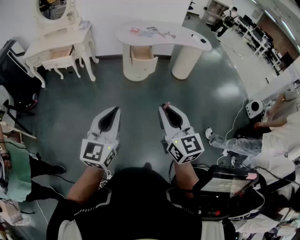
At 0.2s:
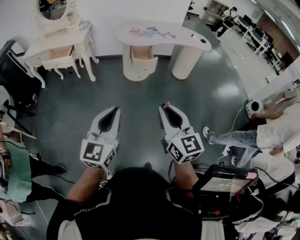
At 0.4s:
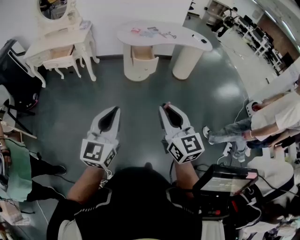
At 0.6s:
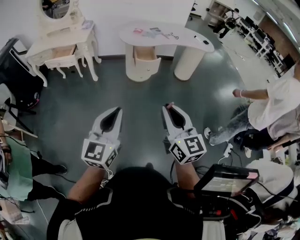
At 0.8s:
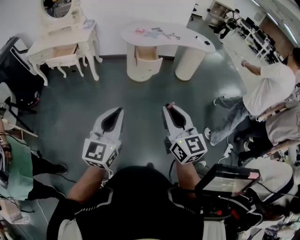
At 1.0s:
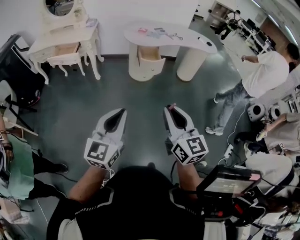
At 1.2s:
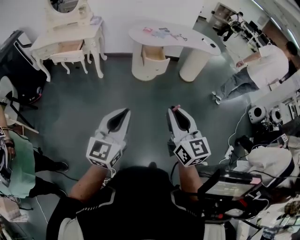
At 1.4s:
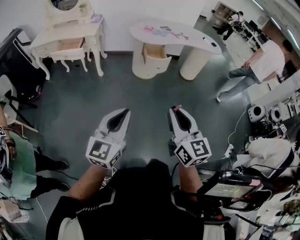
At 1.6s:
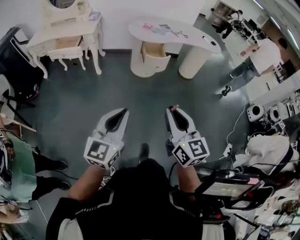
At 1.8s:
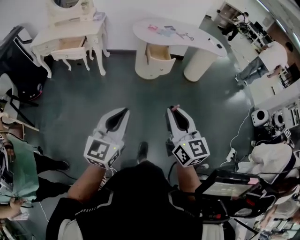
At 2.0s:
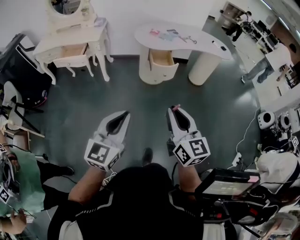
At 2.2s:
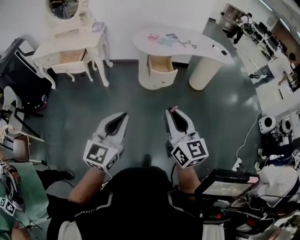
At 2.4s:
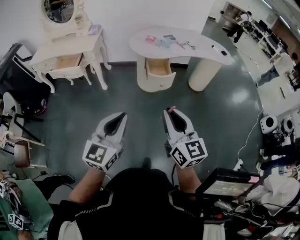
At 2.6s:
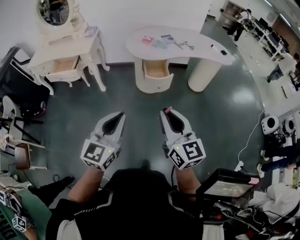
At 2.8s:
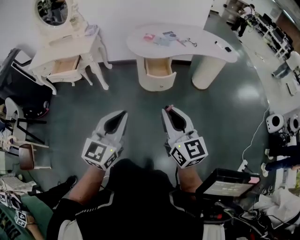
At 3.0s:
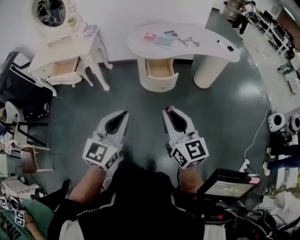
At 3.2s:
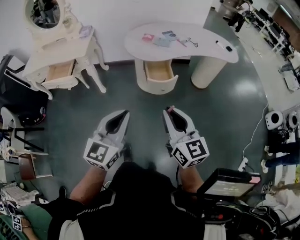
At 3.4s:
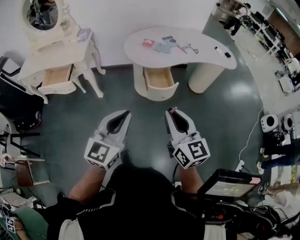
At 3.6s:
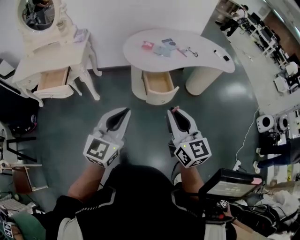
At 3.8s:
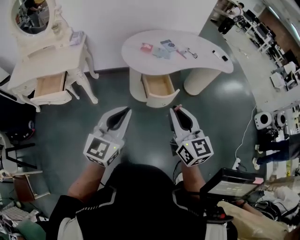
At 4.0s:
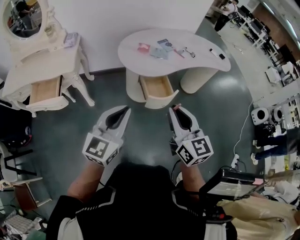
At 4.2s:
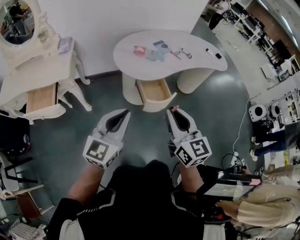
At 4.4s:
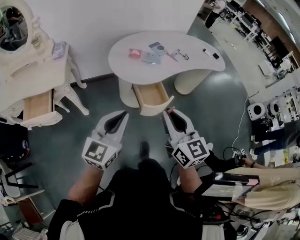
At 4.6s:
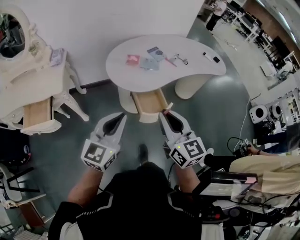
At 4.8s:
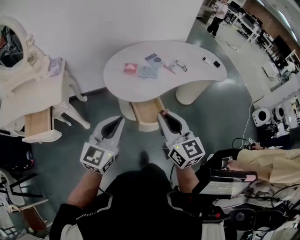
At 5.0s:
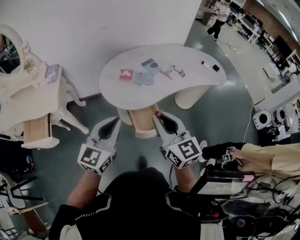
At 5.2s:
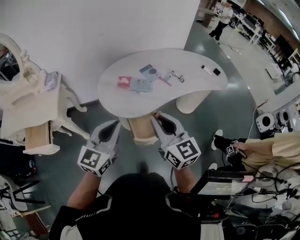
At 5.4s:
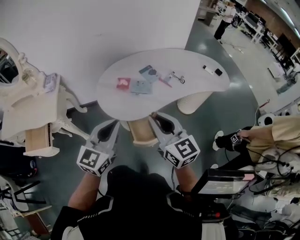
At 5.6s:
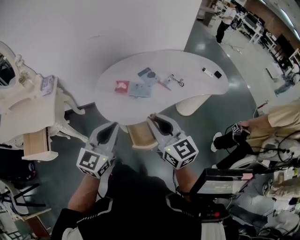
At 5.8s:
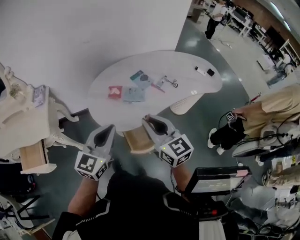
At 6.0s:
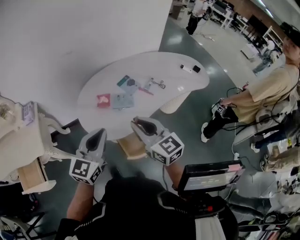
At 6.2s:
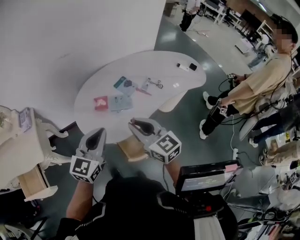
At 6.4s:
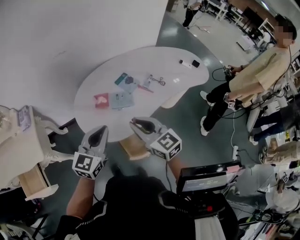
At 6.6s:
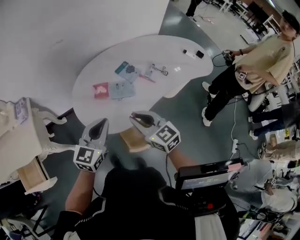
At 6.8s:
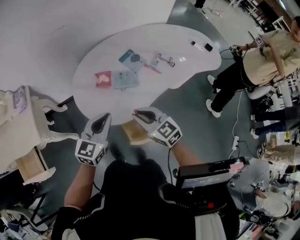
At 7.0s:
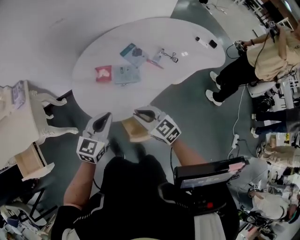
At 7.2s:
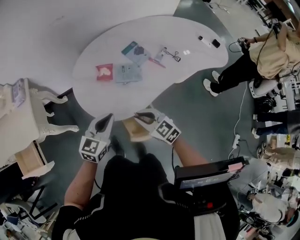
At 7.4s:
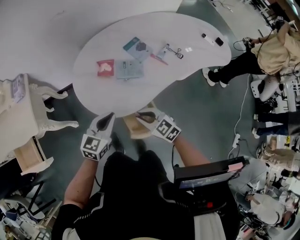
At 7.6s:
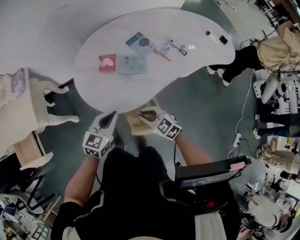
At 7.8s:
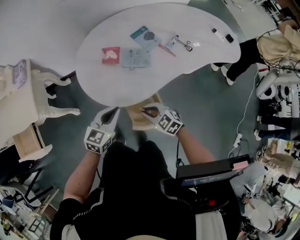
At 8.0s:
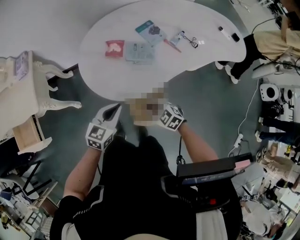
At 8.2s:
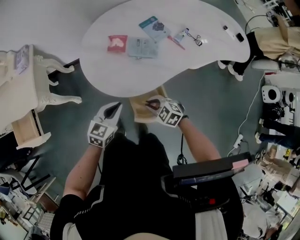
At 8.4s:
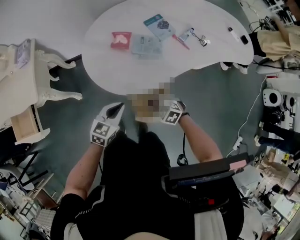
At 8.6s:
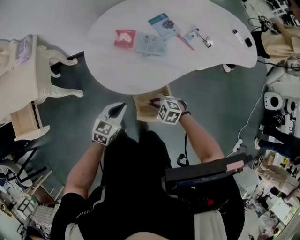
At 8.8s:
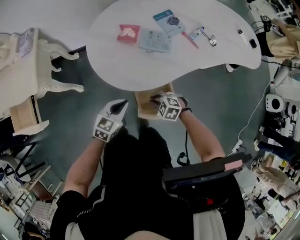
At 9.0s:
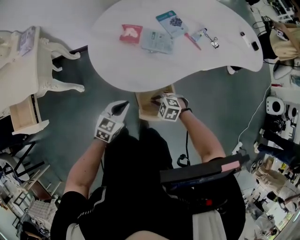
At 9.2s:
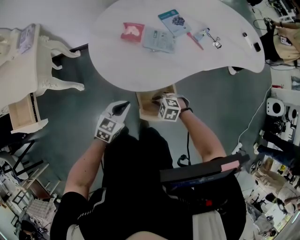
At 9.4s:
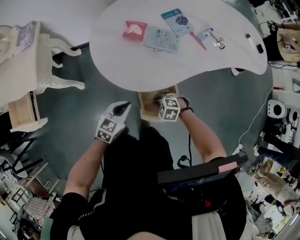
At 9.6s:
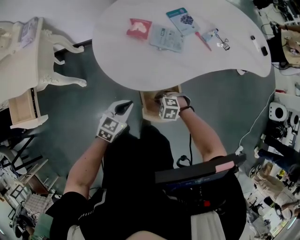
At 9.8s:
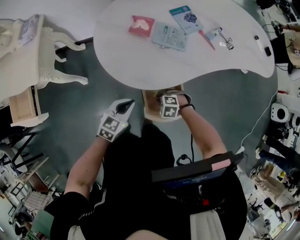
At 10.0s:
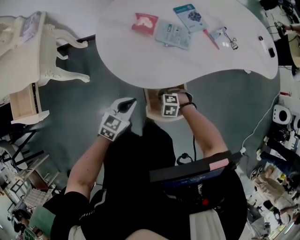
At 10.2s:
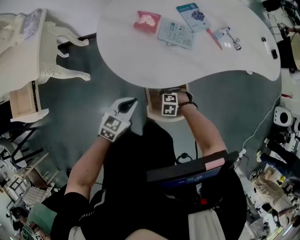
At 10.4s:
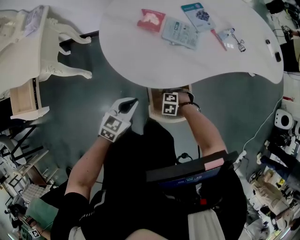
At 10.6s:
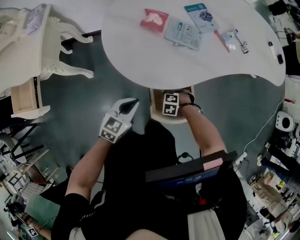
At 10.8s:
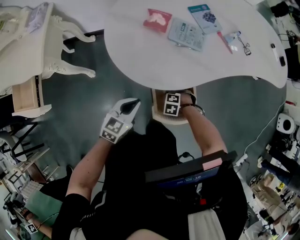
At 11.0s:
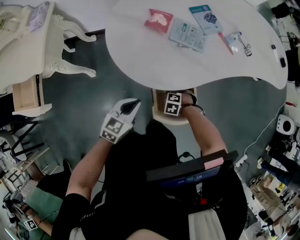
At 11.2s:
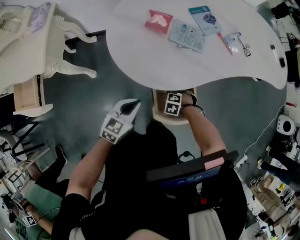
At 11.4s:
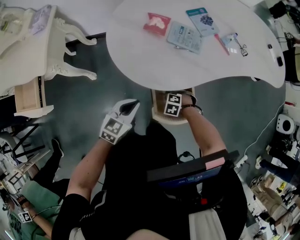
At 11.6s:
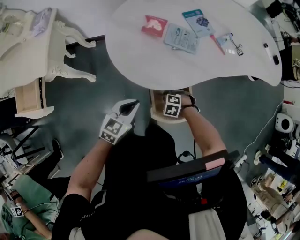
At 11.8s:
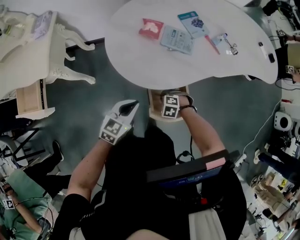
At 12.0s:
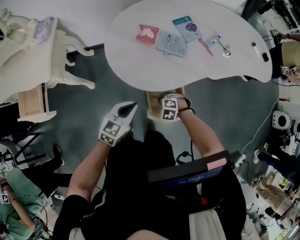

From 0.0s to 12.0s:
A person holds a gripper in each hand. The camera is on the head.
From 0.0s to 1.6s: Both grippers move to the left, roughly 10 cm.
From 1.6s to 3.0s: Both grippers move forward, about 25 cm.
From 3.0s to 4.4s: The two grippers go approximately 30 cm forward and to the left.
From 4.4s to 6.0s: The grippers both shift forward by approximately 30 cm.
From 6.0s to 7.6s: The two grippers go about 25 cm downward. The right gripper tips its fingers downward by some 30 degrees. Meanwhile the left gripper swivels some 20 degrees.
From 7.6s to 9.0s: The right gripper shifts some 15 cm downward, and swivels approximately 40 degrees; the left gripper is displaced downward and backward by some 15 cm.
From 9.0s to 10.4s: The right gripper travels downward by roughly 15 cm, and swivels some 20 degrees.
From 10.4s to 12.0s: The grippers both shift upward by roughly 10 cm.

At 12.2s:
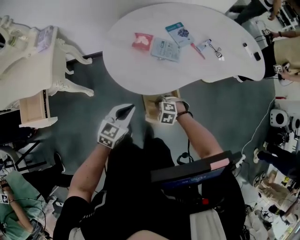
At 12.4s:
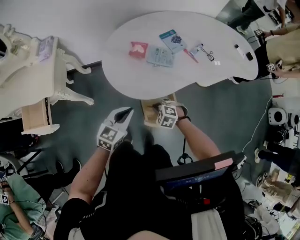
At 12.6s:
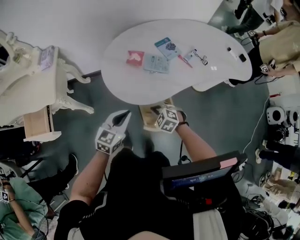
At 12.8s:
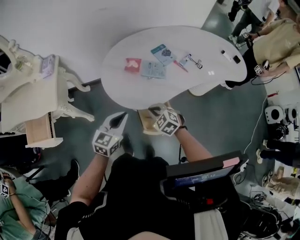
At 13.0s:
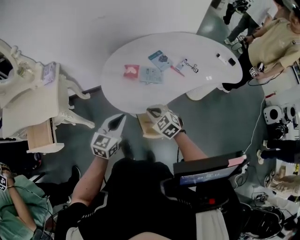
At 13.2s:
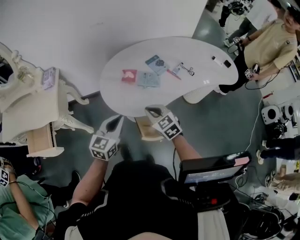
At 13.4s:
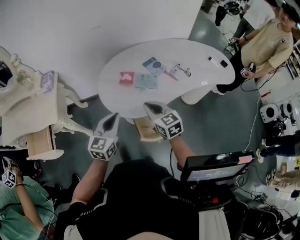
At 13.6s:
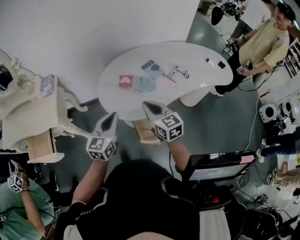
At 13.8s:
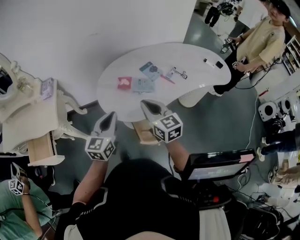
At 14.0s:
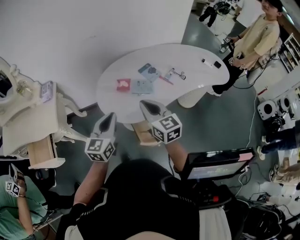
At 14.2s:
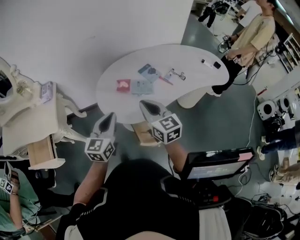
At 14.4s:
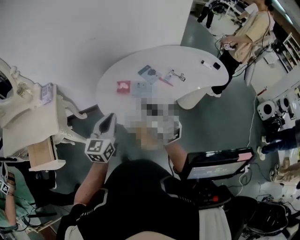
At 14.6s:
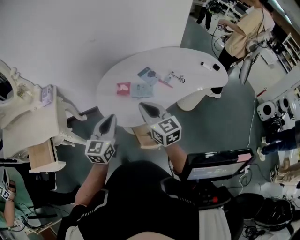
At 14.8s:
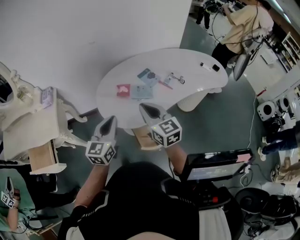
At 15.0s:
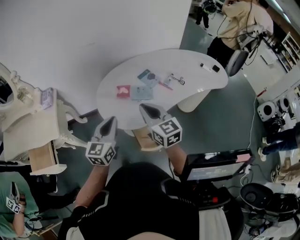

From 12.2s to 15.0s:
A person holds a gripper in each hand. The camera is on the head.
From 12.2s to 13.6s: The left gripper travels upward by approximately 20 cm, and turns by approximately 20 degrees. Meanwhile the right gripper moves upward, approximately 35 cm, and tips its fingers upward by approximately 60 degrees.
From 13.6s to 15.0s: The right gripper is displaced upward by some 5 cm.

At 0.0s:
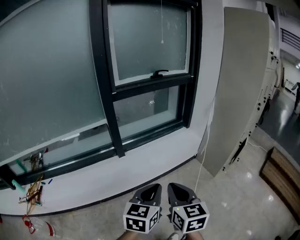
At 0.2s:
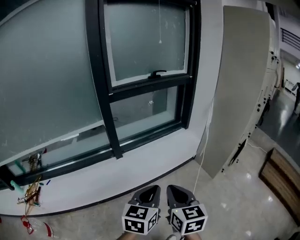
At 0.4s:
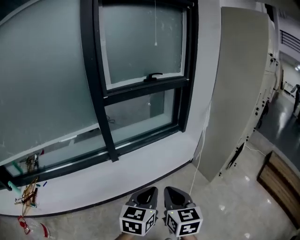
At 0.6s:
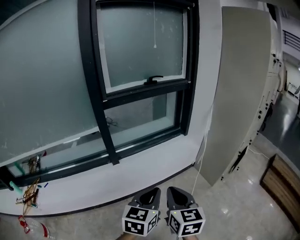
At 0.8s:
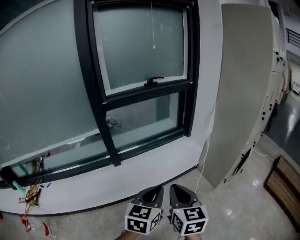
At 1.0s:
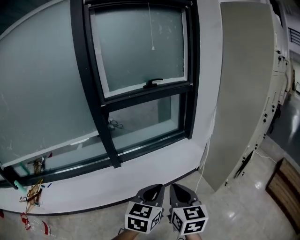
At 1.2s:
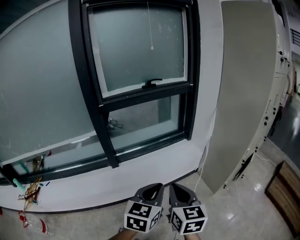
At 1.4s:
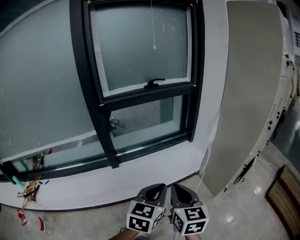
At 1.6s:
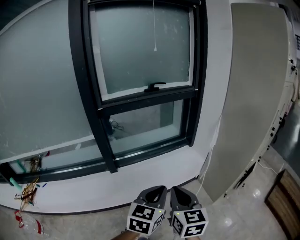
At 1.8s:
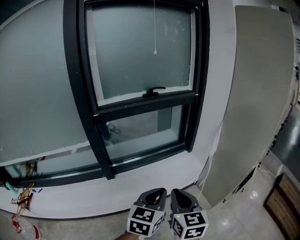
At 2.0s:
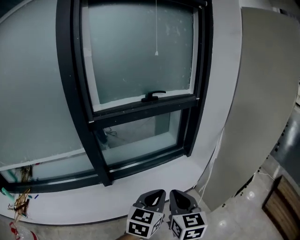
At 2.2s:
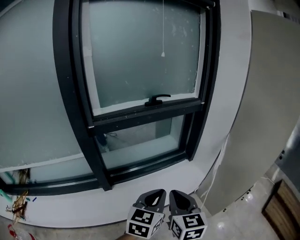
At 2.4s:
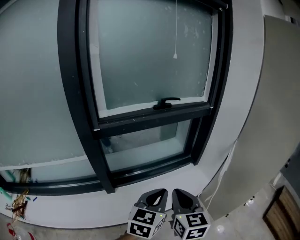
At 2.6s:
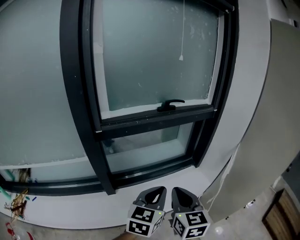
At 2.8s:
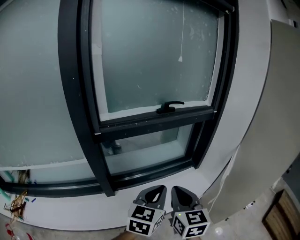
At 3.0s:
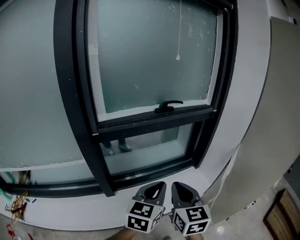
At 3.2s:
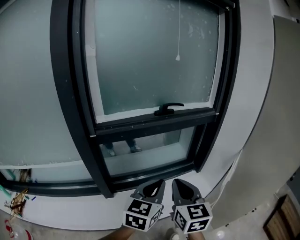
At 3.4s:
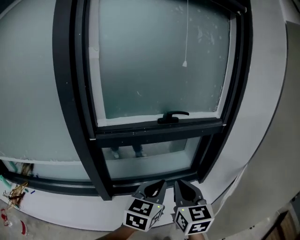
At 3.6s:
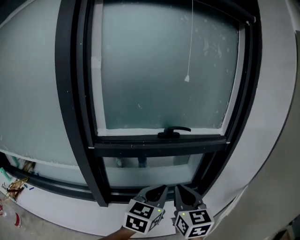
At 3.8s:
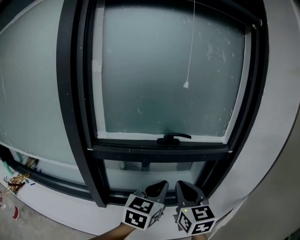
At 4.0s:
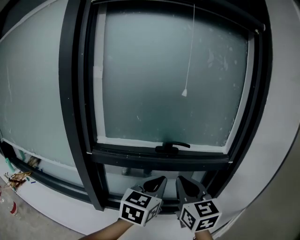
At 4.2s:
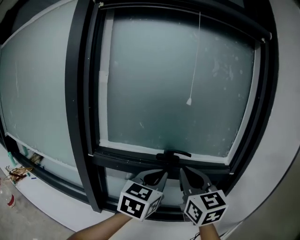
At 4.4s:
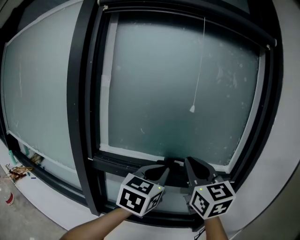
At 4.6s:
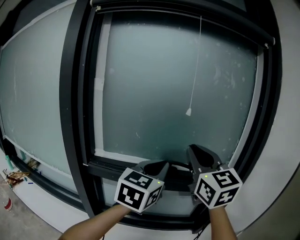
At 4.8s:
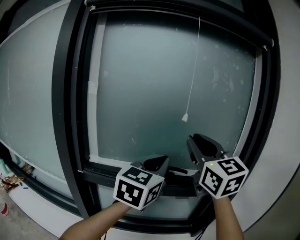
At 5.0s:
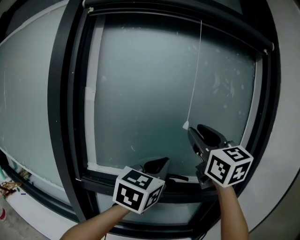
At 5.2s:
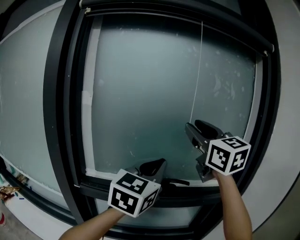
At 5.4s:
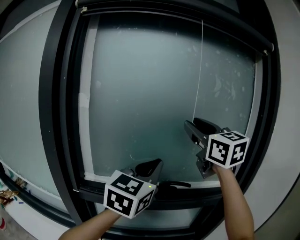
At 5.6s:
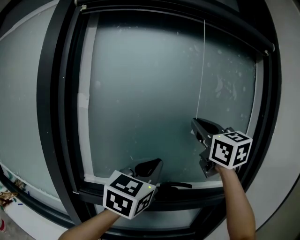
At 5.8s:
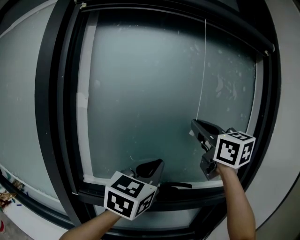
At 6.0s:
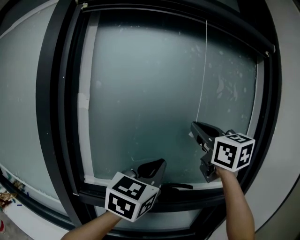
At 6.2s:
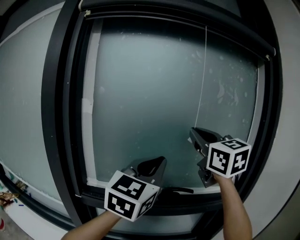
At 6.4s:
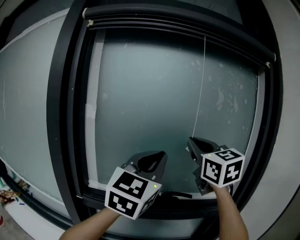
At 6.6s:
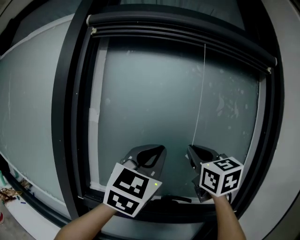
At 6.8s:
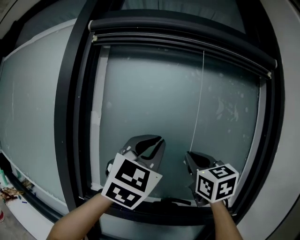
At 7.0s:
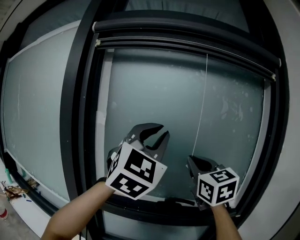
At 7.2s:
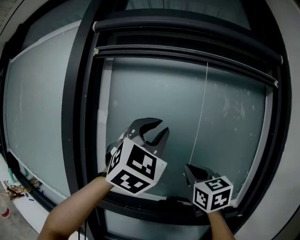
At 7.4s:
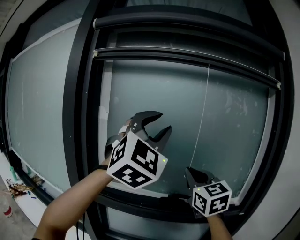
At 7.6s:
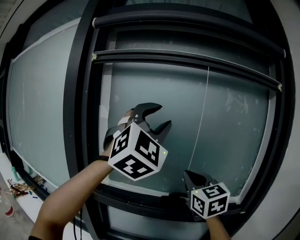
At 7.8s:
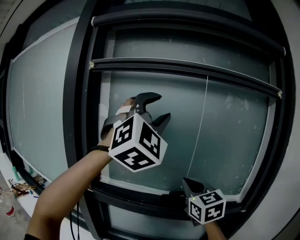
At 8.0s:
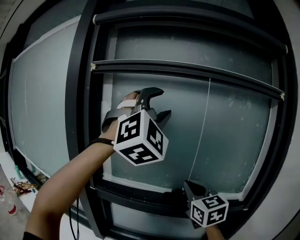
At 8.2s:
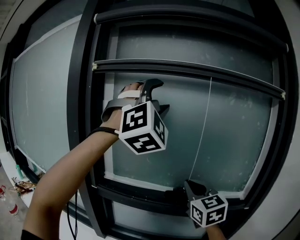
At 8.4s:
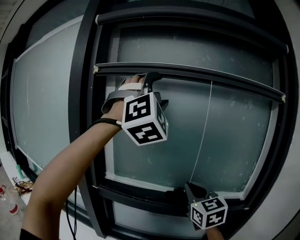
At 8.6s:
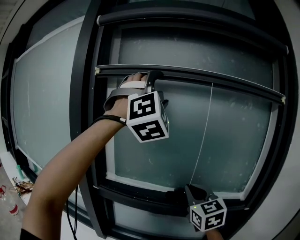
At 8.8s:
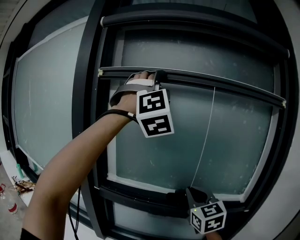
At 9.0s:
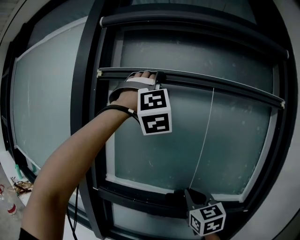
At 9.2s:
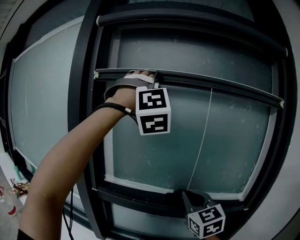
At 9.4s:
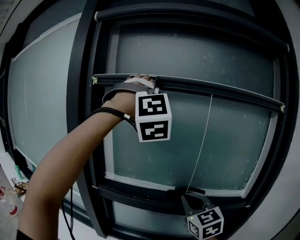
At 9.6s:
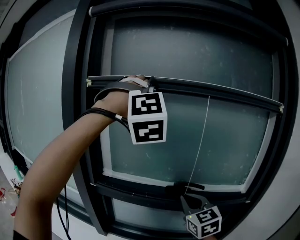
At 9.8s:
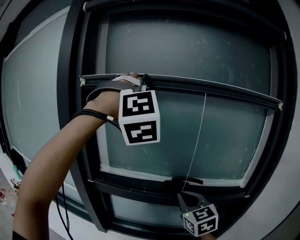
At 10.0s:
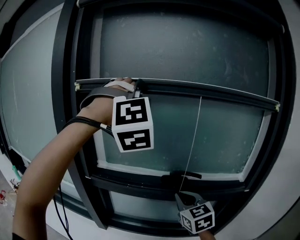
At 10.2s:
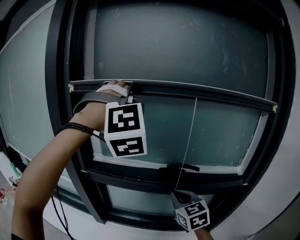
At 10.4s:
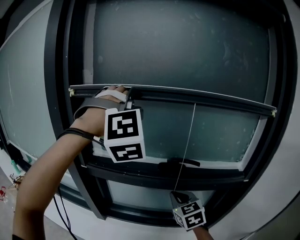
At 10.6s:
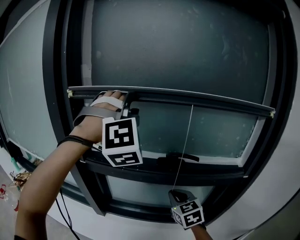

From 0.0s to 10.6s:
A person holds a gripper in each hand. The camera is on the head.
From 0.0s to 1.6s: Both grippers are carried forward and to the right, about 40 cm.
From 1.6s to 3.0s: The pair of grippers is taken forward and to the left, some 50 cm.
From 3.0s to 4.6s: The pair of grippers is taken some 40 cm. The left gripper rotates some 20 degrees, while the right gripper rotates approximately 40 degrees.
From 4.6s to 6.0s: The right gripper travels forward and upward by about 20 cm, and opens, then closes again, while the left gripper shifts approximately 15 cm forward, to the left and upward.
From 6.0s to 7.6s: The right gripper travels downward by about 15 cm. The left gripper moves upward, about 15 cm, rotates around the line of its fingers by some 50 degrees, clockwise from behind, and opens up.
From 7.6s to 9.0s: The right gripper travels downward by approximately 5 cm. The left gripper travels upward and forward by approximately 10 cm, turns by about 40 degrees, and opens.
From 9.0s to 10.6s: Both grippers move downward, roughly 25 cm. The left gripper closes its fingers; the right gripper rotates some 20 degrees.
